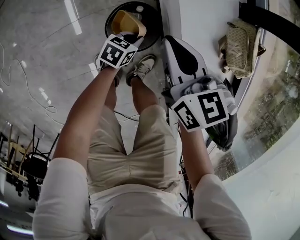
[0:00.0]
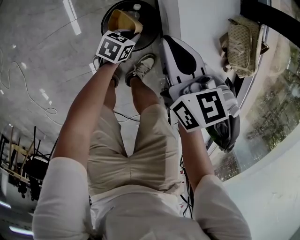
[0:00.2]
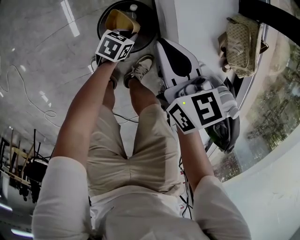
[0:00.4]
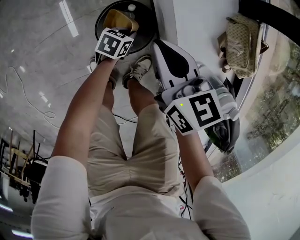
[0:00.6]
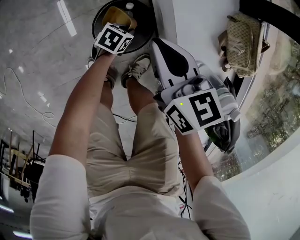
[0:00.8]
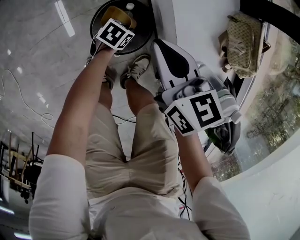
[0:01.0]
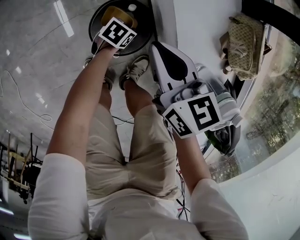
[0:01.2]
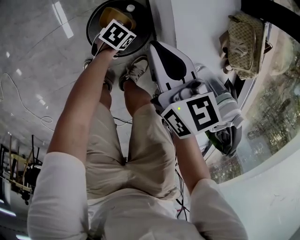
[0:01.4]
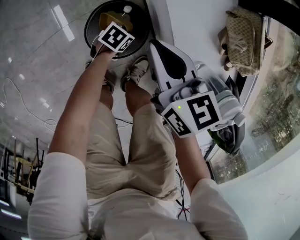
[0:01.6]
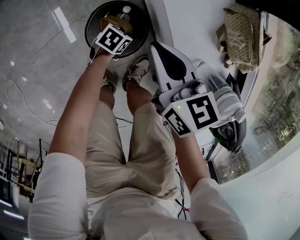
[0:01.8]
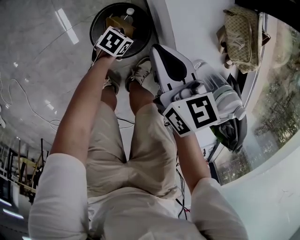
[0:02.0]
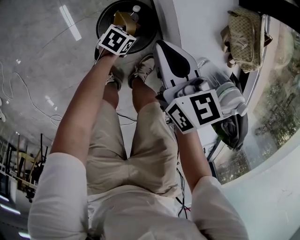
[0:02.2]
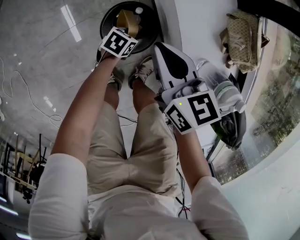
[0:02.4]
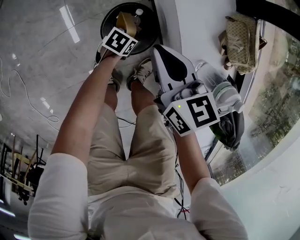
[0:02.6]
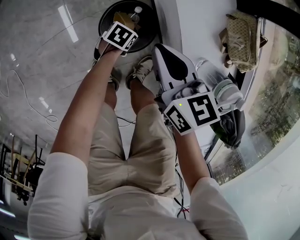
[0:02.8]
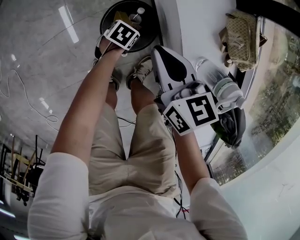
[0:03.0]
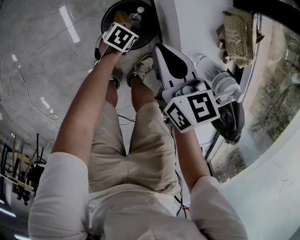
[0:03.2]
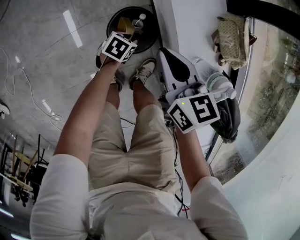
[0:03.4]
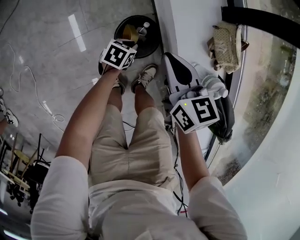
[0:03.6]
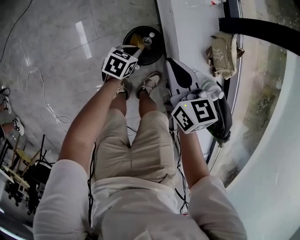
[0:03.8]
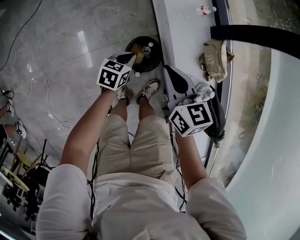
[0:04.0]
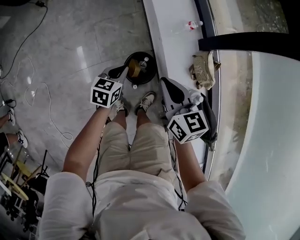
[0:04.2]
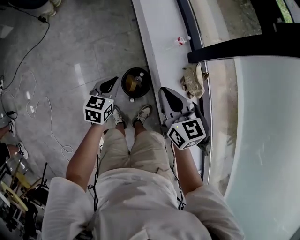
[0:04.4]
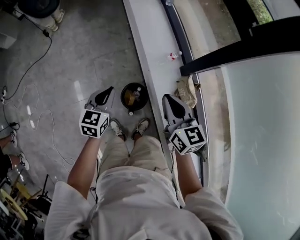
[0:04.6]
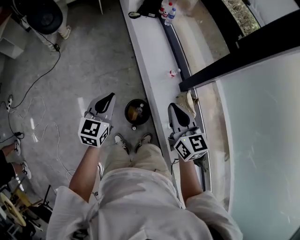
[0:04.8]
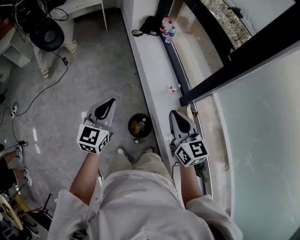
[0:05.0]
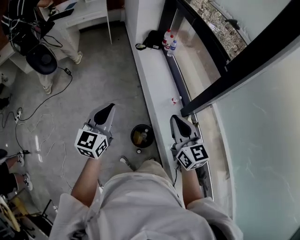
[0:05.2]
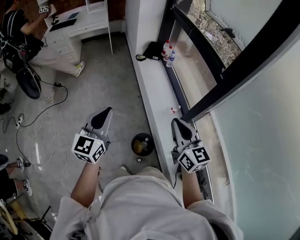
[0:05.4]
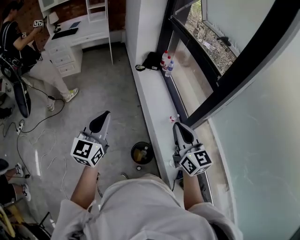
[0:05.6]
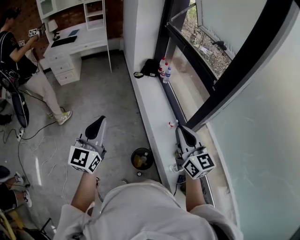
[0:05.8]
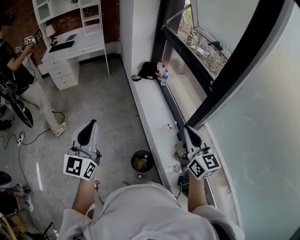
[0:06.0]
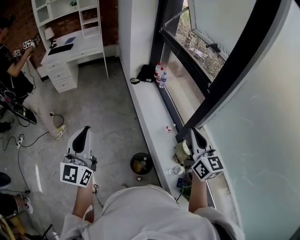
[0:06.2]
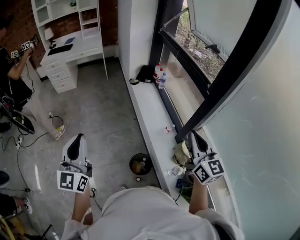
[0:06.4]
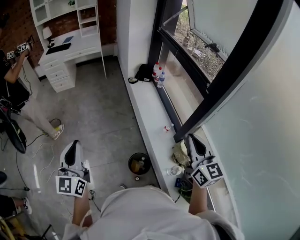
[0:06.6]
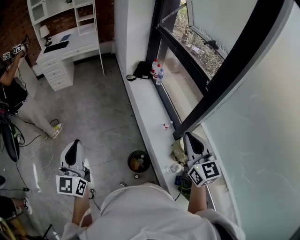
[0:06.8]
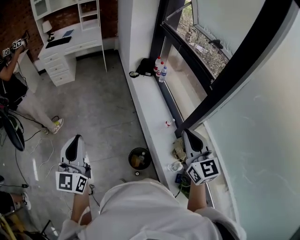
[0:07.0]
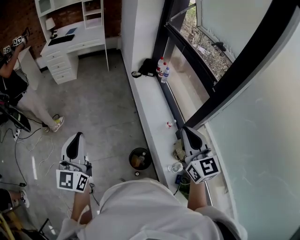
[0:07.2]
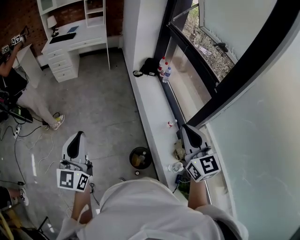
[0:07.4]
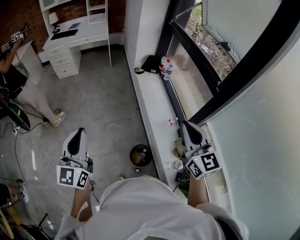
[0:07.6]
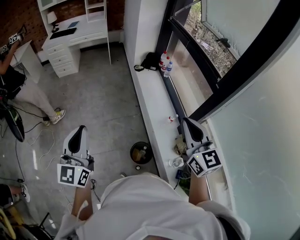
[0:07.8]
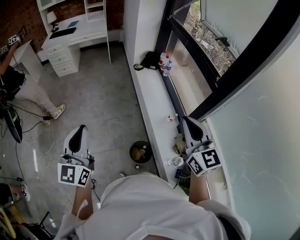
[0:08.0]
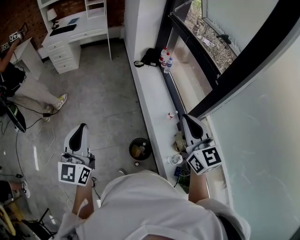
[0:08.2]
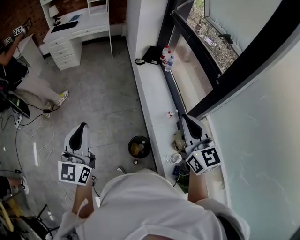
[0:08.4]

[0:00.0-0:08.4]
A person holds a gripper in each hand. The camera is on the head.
0:00.0 to 0:01.4: The right gripper goes about 5 cm downward; the left gripper travels downward by some 10 cm.
0:01.4 to 0:02.8: The left gripper ends up approximately 5 cm from where it was, and opens.
0:02.8 to 0:04.2: The right gripper heads upward, covering approximately 25 cm, while the left gripper is displaced upward by roughly 40 cm, swivels some 40 degrees, and closes.
0:04.2 to 0:05.6: Both grippers travel together upward, about 40 cm. The right gripper turns by some 30 degrees. Meanwhile the left gripper tips its fingers upward by about 40 degrees.
0:05.6 to 0:07.0: The left gripper moves to the left and backward, some 10 cm.
0:07.0 to 0:08.4: The grippers make only small movements.

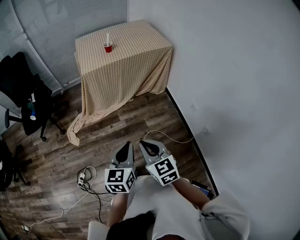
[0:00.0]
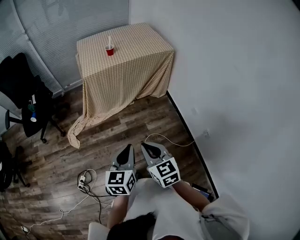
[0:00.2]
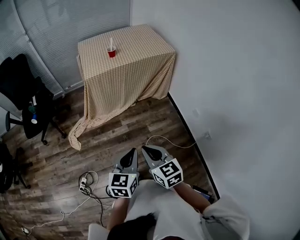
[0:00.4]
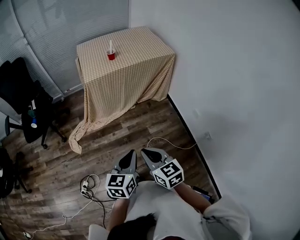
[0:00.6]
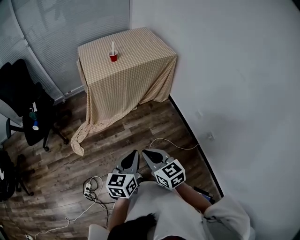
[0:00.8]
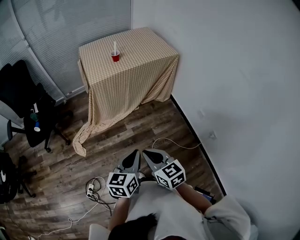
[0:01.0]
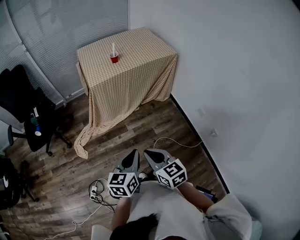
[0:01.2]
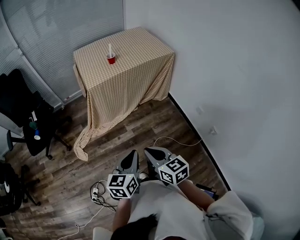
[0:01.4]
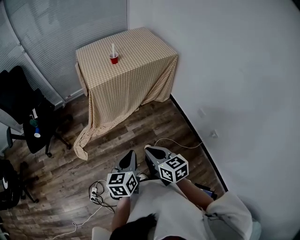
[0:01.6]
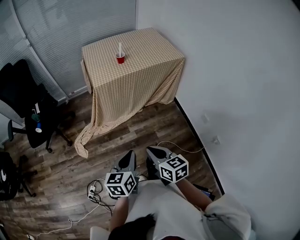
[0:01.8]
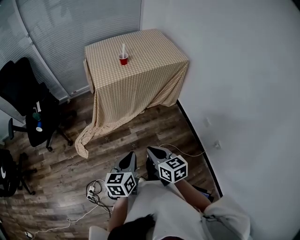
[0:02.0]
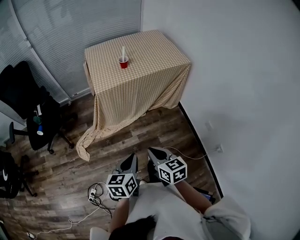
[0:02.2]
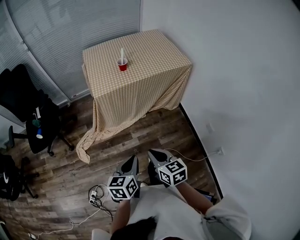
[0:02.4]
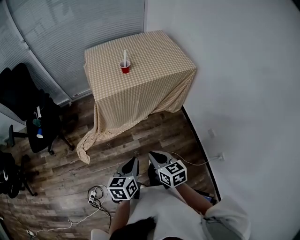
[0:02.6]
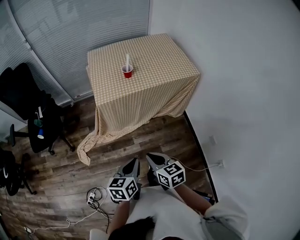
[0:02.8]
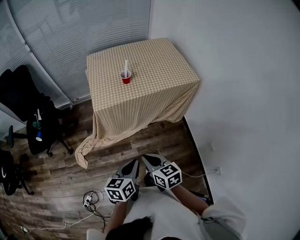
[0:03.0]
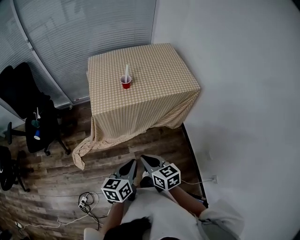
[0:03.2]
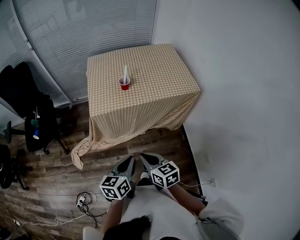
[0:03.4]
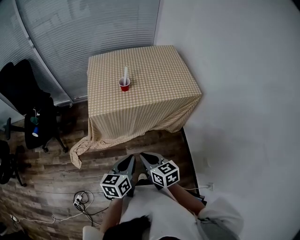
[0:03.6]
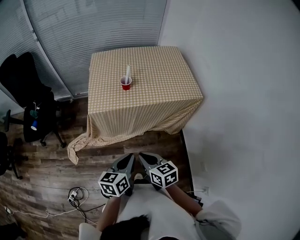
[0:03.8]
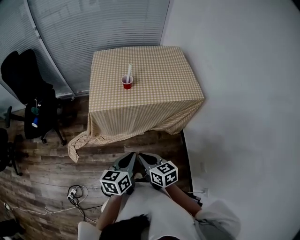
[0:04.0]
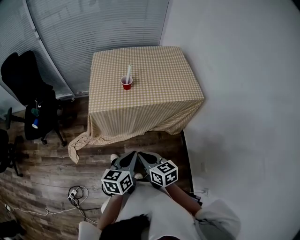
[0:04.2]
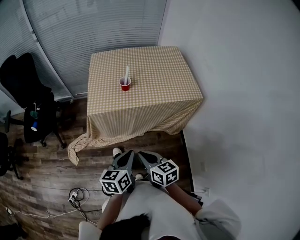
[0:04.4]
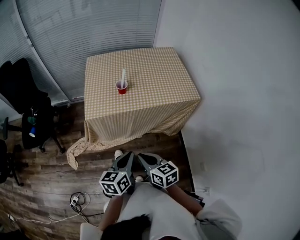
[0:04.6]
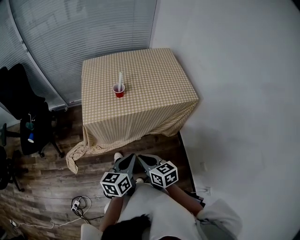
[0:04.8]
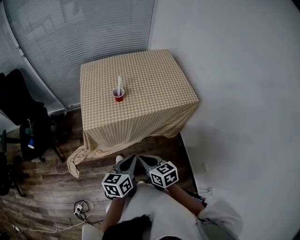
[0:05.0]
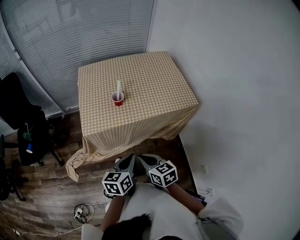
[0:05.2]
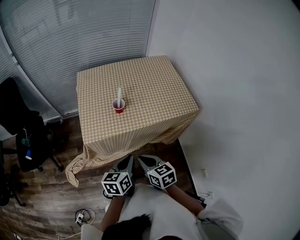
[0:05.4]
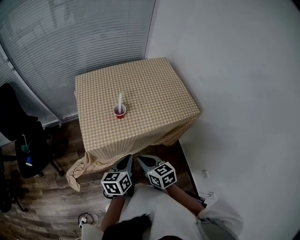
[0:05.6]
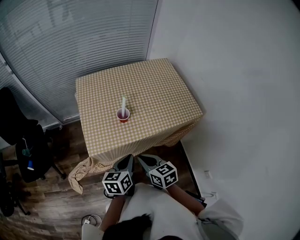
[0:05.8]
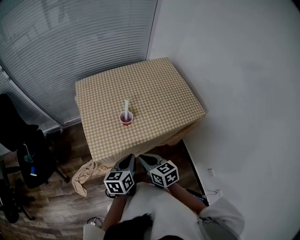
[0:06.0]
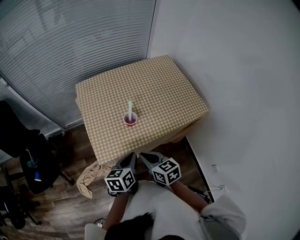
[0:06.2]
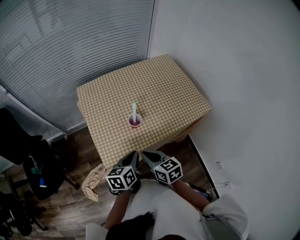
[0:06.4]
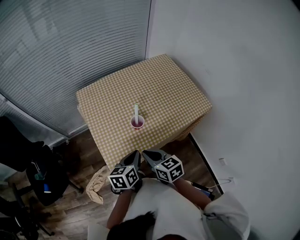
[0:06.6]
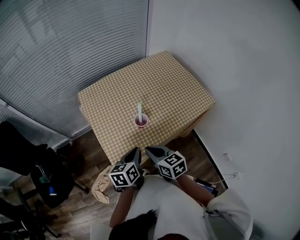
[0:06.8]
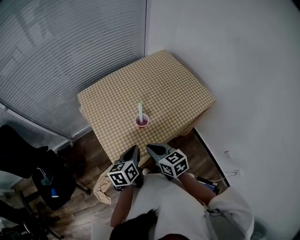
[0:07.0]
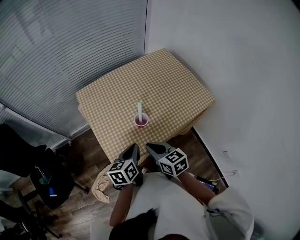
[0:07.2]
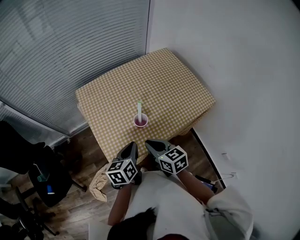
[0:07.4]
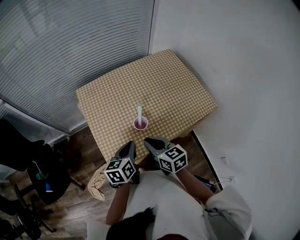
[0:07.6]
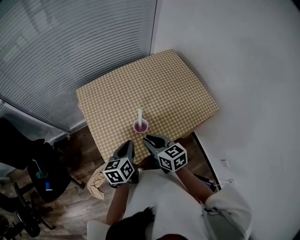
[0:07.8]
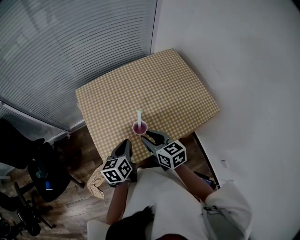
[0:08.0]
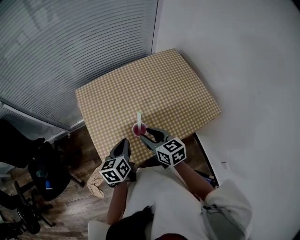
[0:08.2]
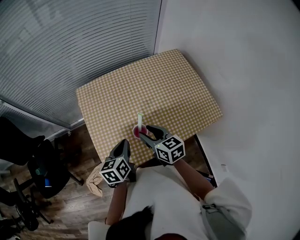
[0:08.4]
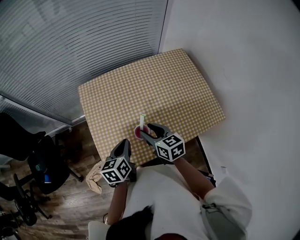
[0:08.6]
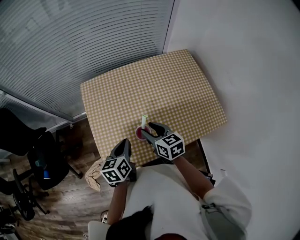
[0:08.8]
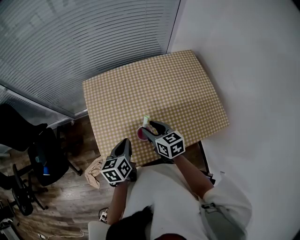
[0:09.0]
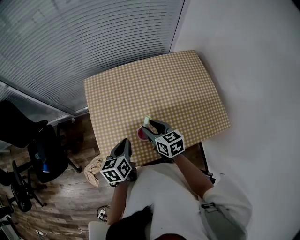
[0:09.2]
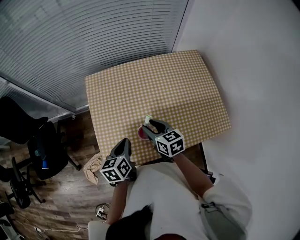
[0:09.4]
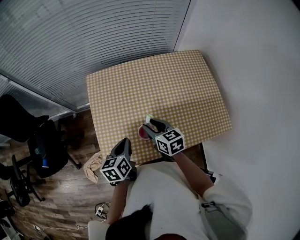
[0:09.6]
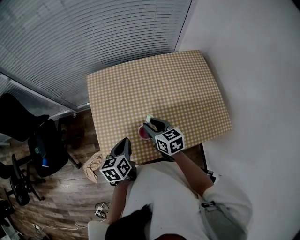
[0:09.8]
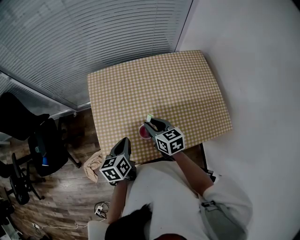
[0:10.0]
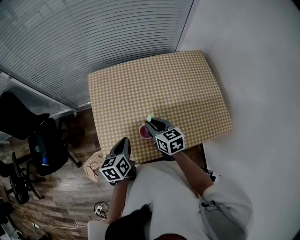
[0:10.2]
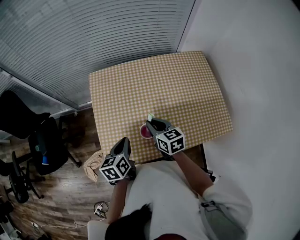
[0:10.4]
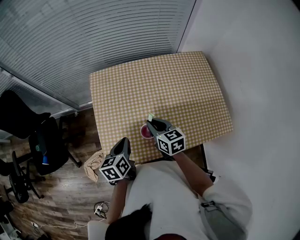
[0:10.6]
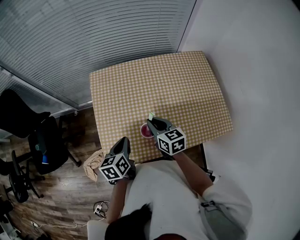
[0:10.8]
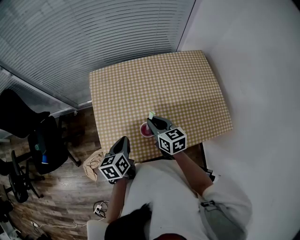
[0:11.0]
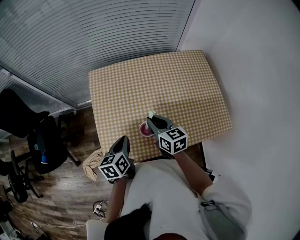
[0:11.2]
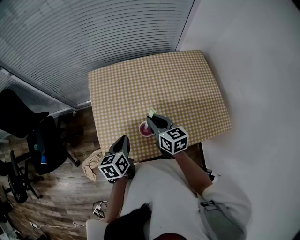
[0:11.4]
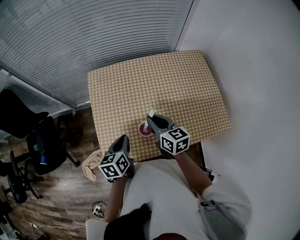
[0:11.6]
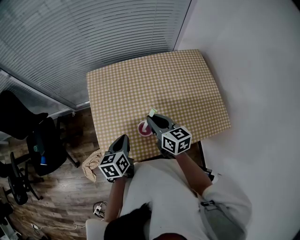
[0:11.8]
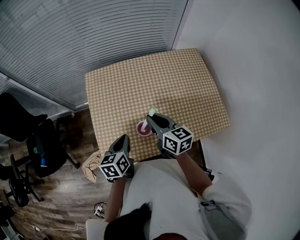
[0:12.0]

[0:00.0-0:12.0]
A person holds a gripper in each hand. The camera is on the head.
0:00.0 to 0:01.6: Both grippers move to the left and forward, about 10 cm. The right gripper rotates about 20 degrees.
0:01.6 to 0:03.0: Both grippers travel together forward, some 20 cm.
0:03.0 to 0:04.4: Both grippers travel together forward and to the right, some 10 cm.
0:04.4 to 0:06.0: The two grippers go approximately 20 cm forward.
0:06.0 to 0:07.6: The left gripper is displaced forward and to the left by about 15 cm. Meanwhile the right gripper moves forward, some 10 cm.
0:07.6 to 0:09.0: The left gripper moves forward, some 5 cm; the right gripper travels forward by about 15 cm, and opens.
0:09.0 to 0:10.4: The right gripper closes its fingers.
0:10.4 to 0:12.0: The right gripper goes roughly 5 cm upward.

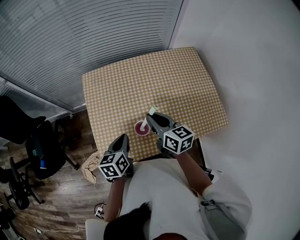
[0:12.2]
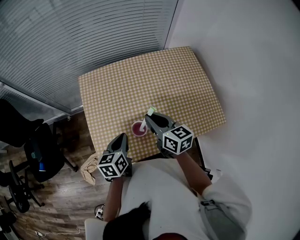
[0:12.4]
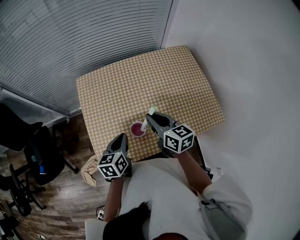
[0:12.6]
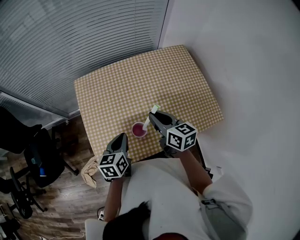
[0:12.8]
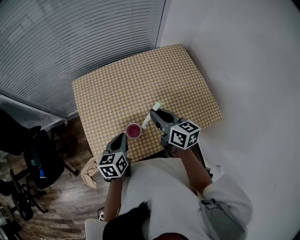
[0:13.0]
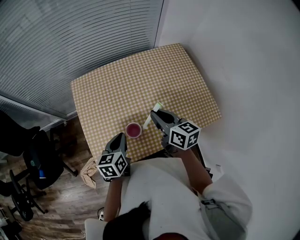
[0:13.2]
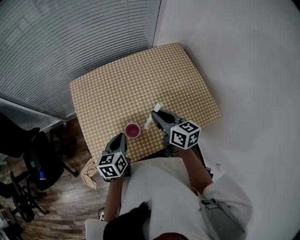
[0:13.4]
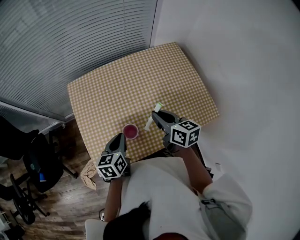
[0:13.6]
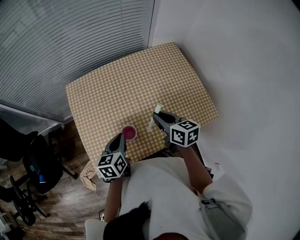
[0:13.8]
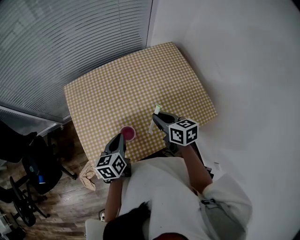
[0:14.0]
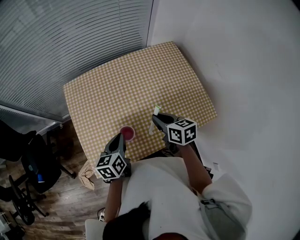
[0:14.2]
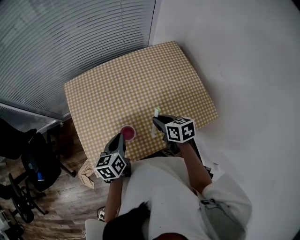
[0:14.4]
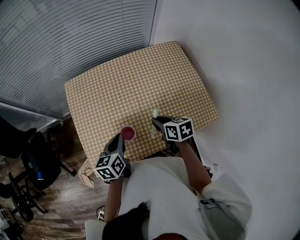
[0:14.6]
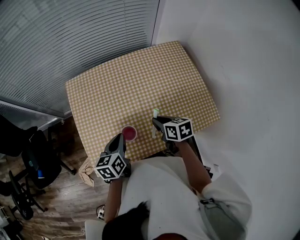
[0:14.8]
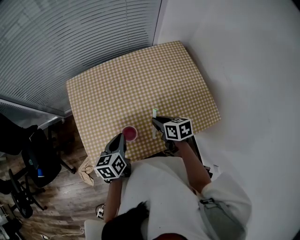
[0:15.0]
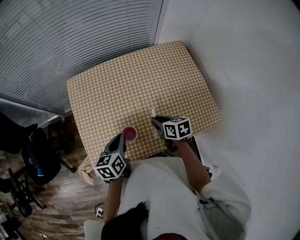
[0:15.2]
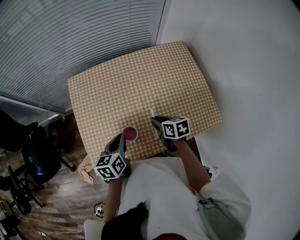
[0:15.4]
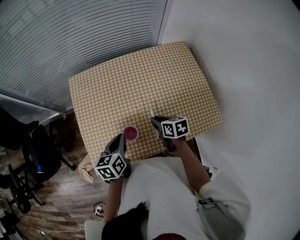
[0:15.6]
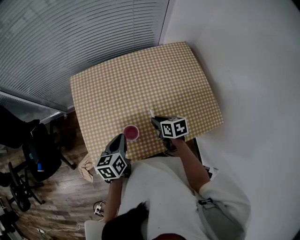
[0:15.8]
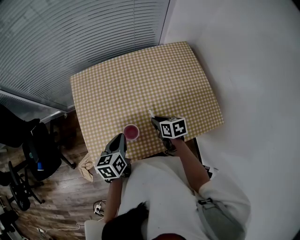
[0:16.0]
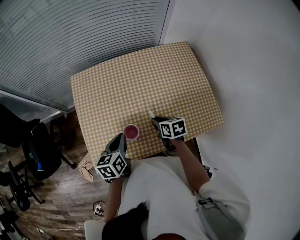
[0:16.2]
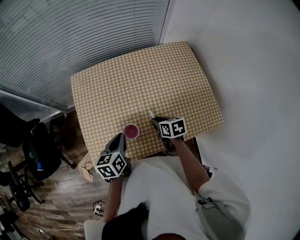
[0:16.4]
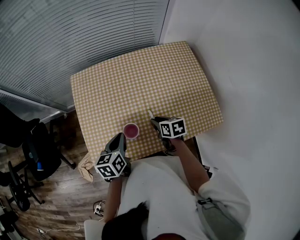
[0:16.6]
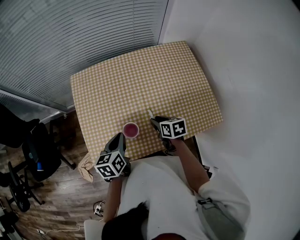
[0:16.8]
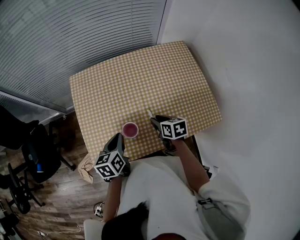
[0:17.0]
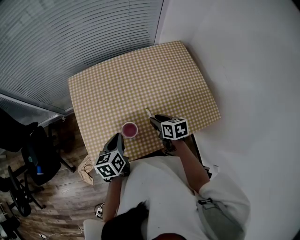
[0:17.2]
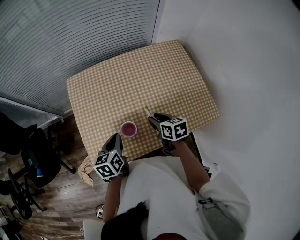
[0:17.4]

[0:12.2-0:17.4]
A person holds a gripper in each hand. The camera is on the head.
0:12.2 to 0:14.0: The right gripper moves to the right, roughly 10 cm, while the left gripper heads to the right, covering some 5 cm.
0:14.0 to 0:15.6: The right gripper shifts about 10 cm downward.
0:15.6 to 0:17.4: The right gripper opens its fingers.
